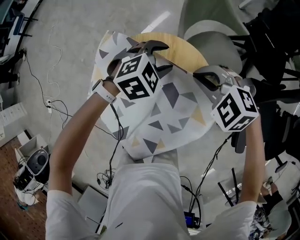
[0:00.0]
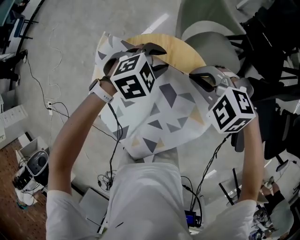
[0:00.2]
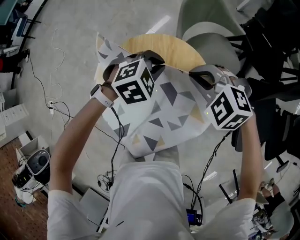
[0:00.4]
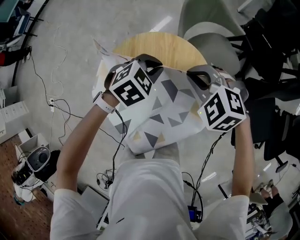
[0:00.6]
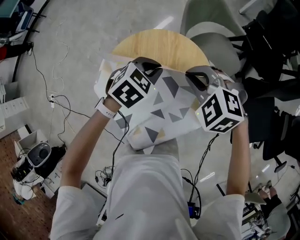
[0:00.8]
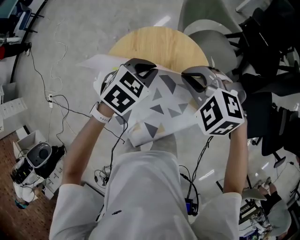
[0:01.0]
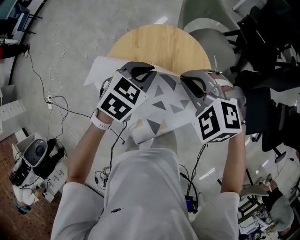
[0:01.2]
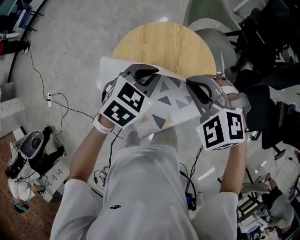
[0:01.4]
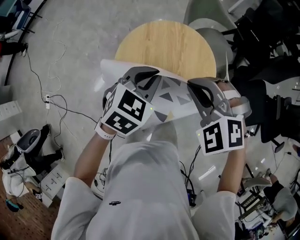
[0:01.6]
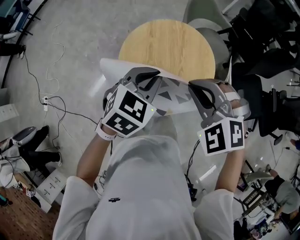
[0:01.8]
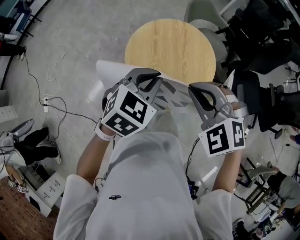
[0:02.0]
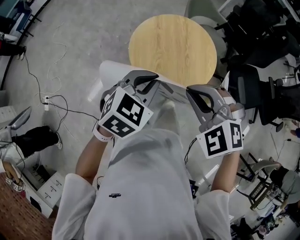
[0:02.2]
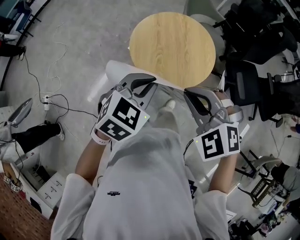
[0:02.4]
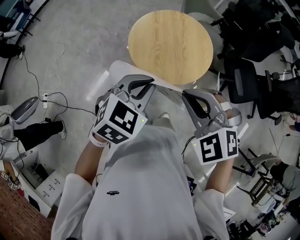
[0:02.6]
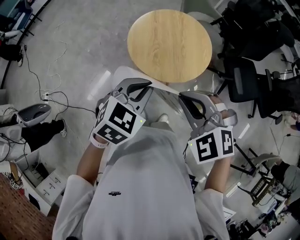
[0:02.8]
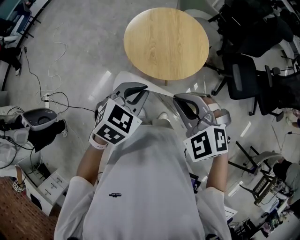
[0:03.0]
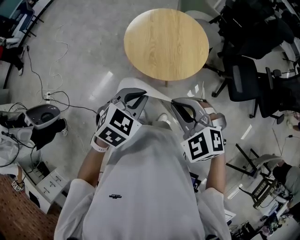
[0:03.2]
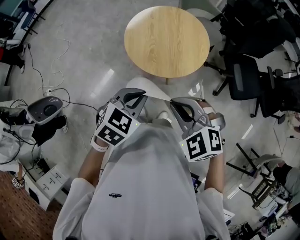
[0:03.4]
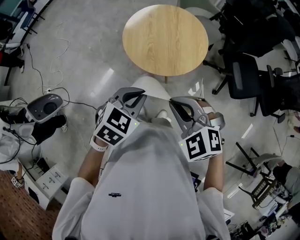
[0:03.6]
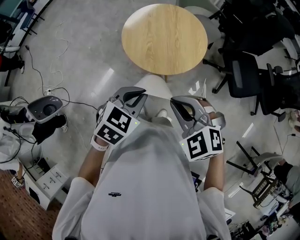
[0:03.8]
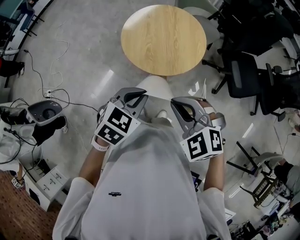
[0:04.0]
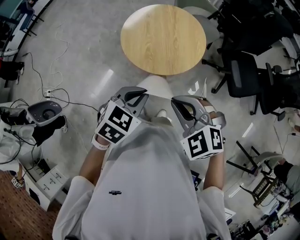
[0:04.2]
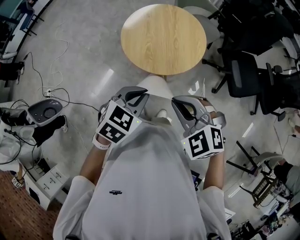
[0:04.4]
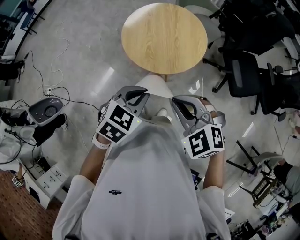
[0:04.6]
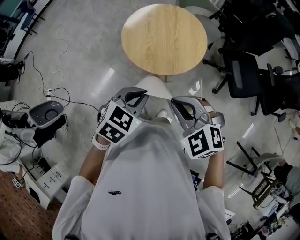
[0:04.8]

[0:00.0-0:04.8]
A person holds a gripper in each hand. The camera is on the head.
0:00.0 to 0:01.6: Both grippers move backward, upward and to the left, approximately 30 cm. The left gripper turns by some 30 degrees, and closes.
0:01.6 to 0:03.2: The grippers both shift backward by approximately 35 cm.
0:03.2 to 0:04.8: The grippers stay close to where they were, moving slightly.

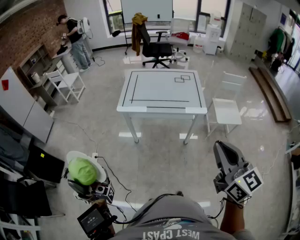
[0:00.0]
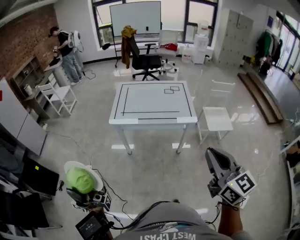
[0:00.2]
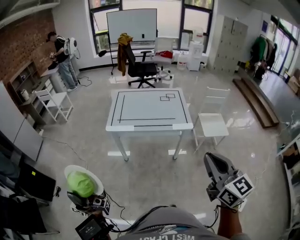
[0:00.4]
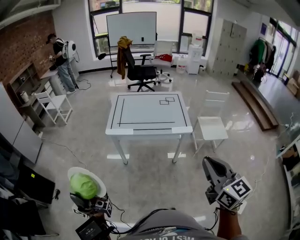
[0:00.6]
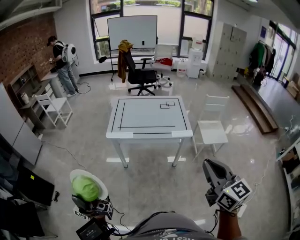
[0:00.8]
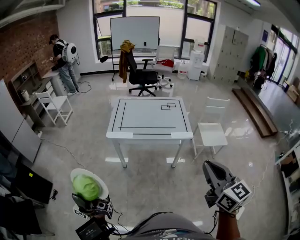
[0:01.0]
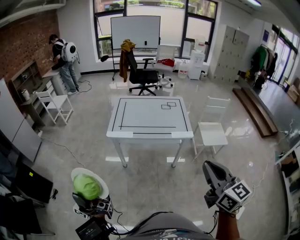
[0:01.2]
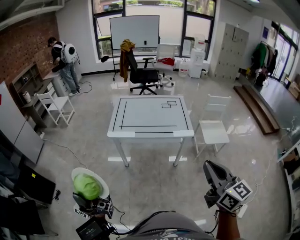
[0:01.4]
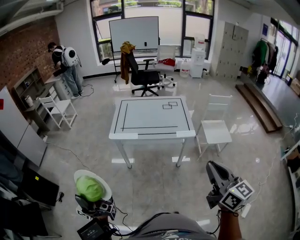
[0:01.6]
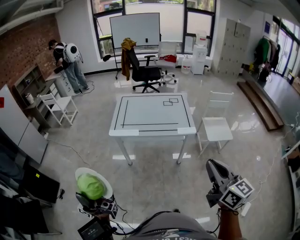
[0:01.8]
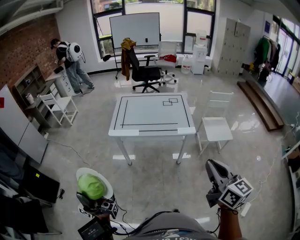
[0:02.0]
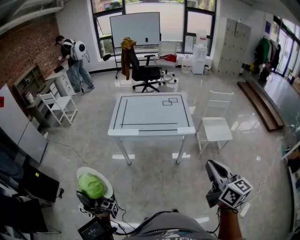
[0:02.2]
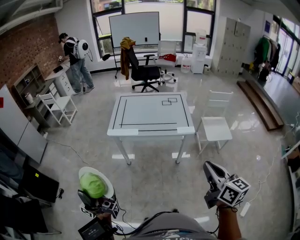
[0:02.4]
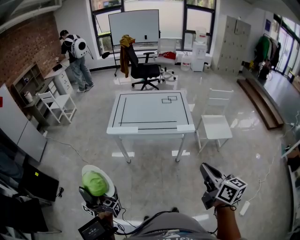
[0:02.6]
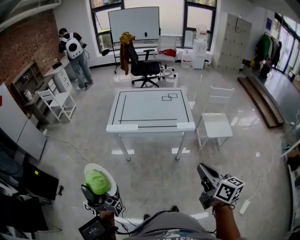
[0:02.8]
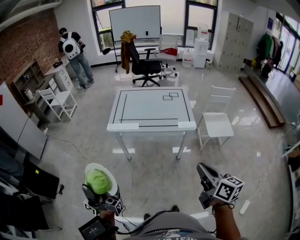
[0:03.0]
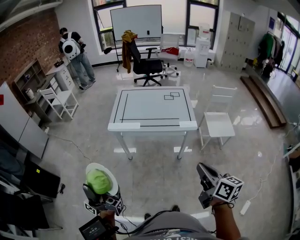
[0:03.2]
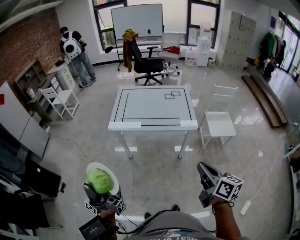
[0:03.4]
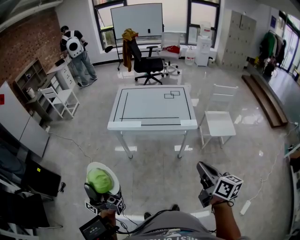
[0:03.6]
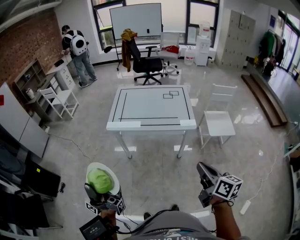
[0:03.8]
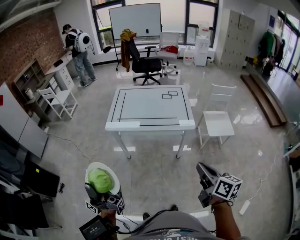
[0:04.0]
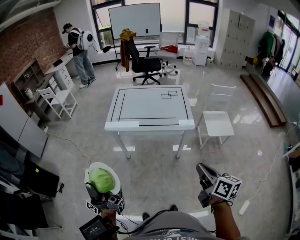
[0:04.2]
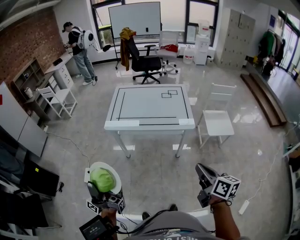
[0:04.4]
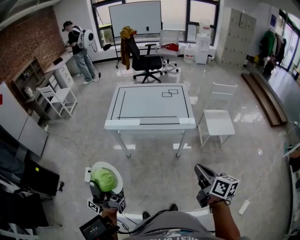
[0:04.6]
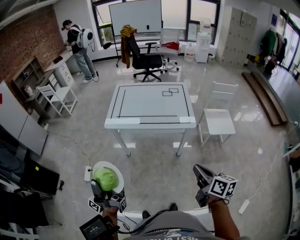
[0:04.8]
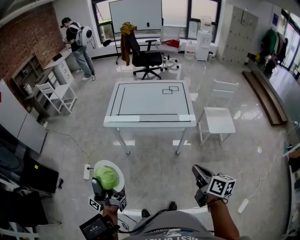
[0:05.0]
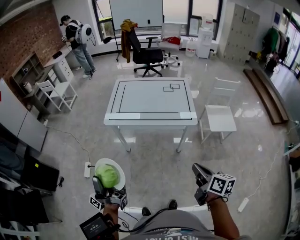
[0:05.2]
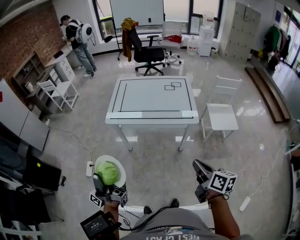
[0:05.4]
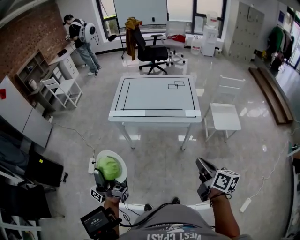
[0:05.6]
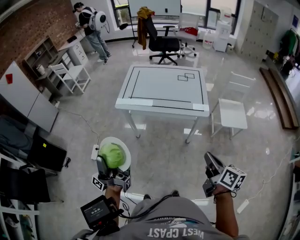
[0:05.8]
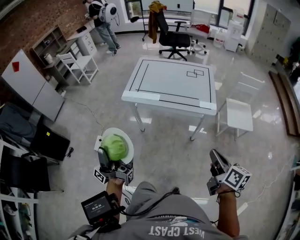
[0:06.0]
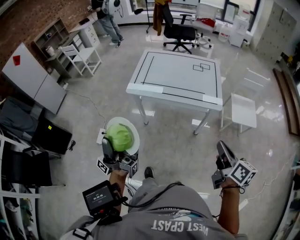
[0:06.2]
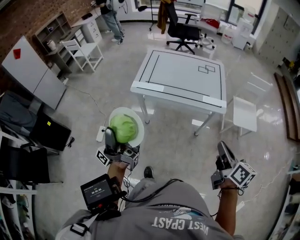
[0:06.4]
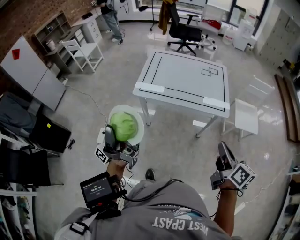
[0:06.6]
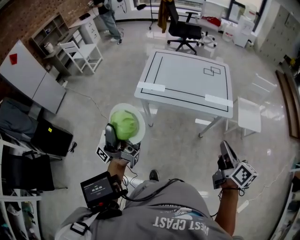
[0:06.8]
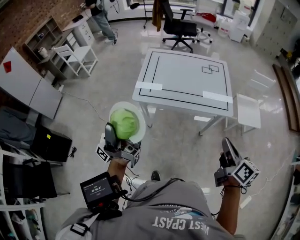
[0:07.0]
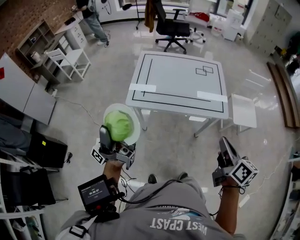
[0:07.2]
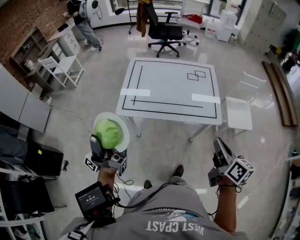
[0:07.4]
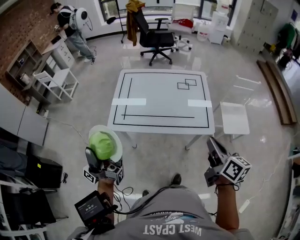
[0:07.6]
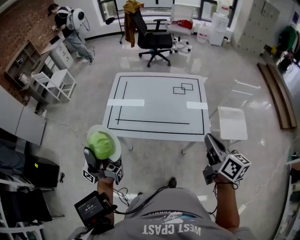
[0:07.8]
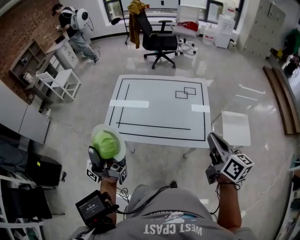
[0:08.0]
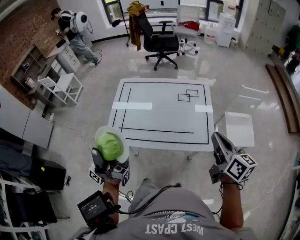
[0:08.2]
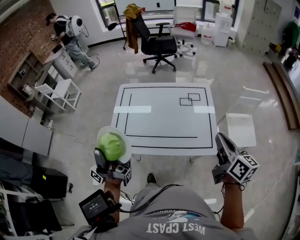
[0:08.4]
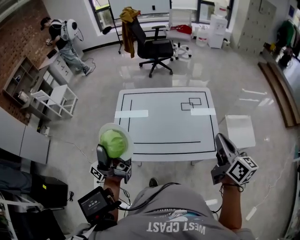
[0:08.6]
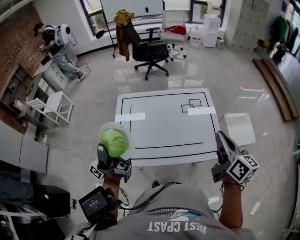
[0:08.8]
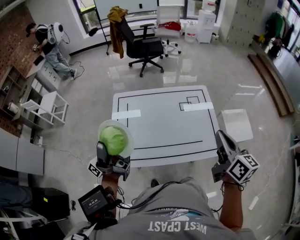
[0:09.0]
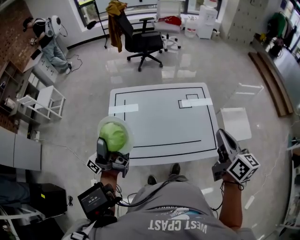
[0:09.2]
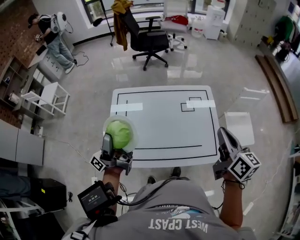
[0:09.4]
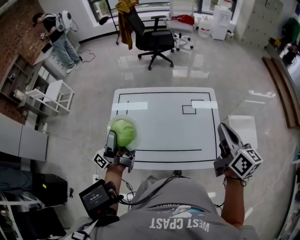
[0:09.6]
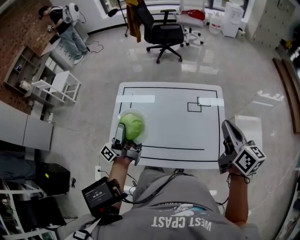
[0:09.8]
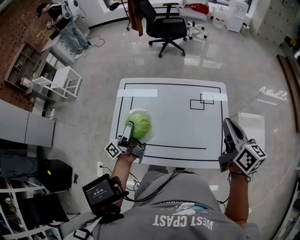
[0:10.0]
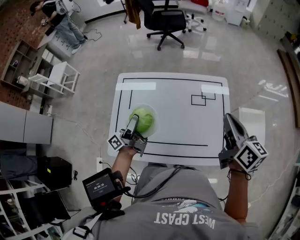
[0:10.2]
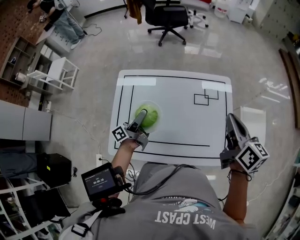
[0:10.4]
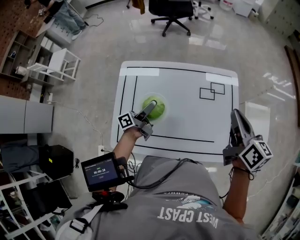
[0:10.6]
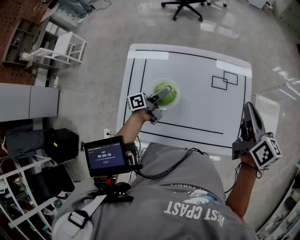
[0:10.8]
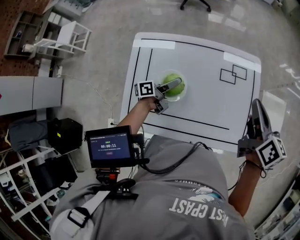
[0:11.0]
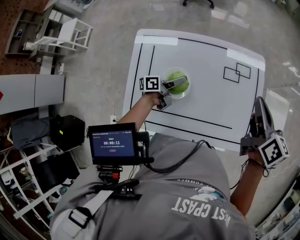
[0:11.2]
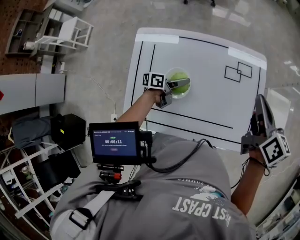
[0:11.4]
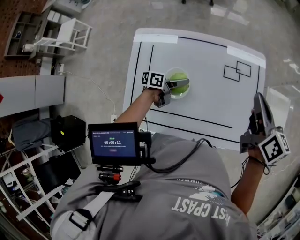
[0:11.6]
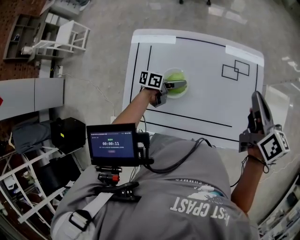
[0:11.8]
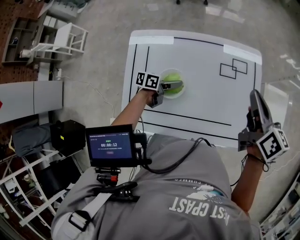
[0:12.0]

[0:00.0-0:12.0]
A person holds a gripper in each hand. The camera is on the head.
0:01.6 to 0:03.0: The right gripper travels downward by approximately 10 cm, and turns by approximately 20 degrees.
0:03.0 to 0:04.4: The right gripper moves some 5 cm.
0:04.4 to 0:06.0: The right gripper changes place by about 5 cm.
0:06.0 to 0:07.6: The right gripper shifts by approximately 25 cm.
0:07.6 to 0:09.0: The right gripper shifts by about 20 cm.
0:09.0 to 0:10.4: The right gripper moves roughly 20 cm.
0:10.4 to 0:12.0: The right gripper moves about 5 cm.

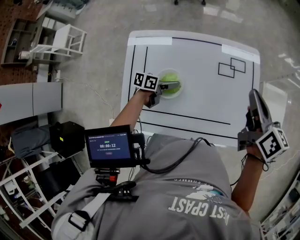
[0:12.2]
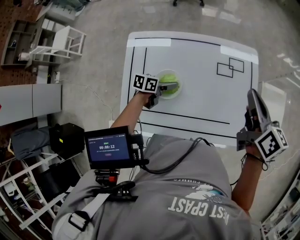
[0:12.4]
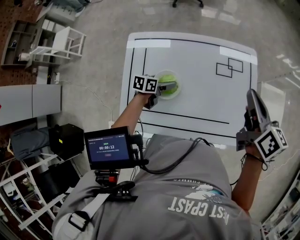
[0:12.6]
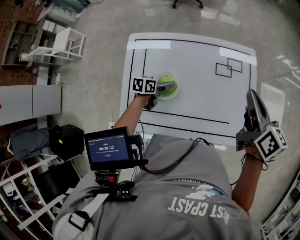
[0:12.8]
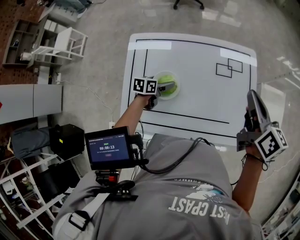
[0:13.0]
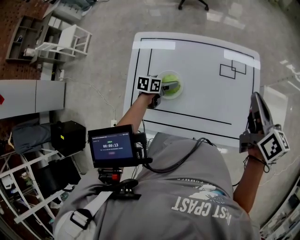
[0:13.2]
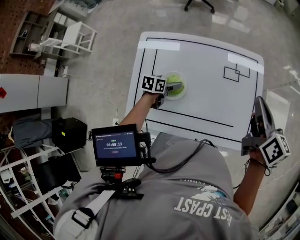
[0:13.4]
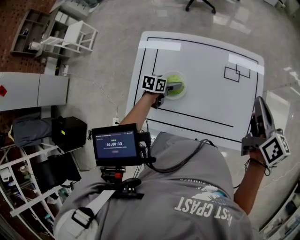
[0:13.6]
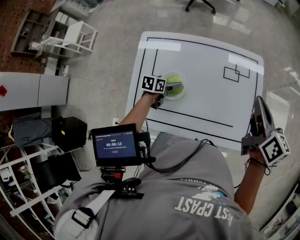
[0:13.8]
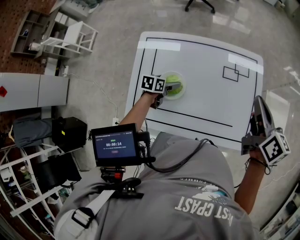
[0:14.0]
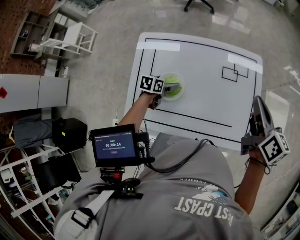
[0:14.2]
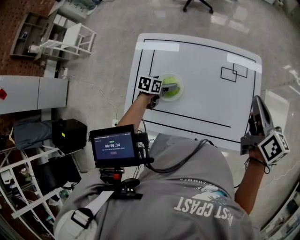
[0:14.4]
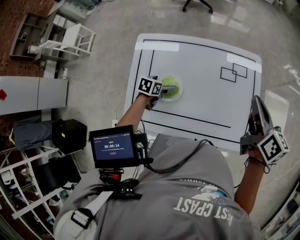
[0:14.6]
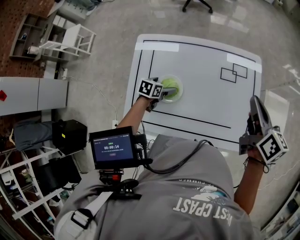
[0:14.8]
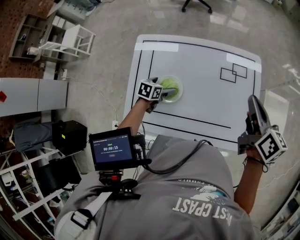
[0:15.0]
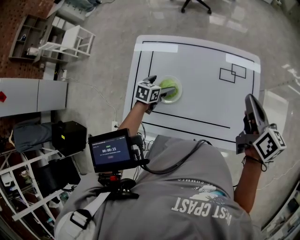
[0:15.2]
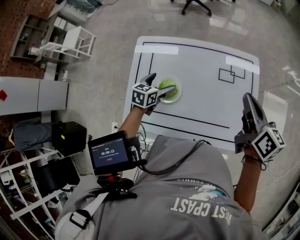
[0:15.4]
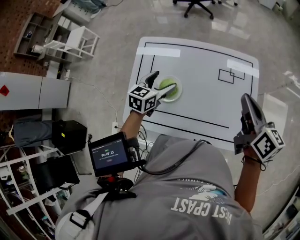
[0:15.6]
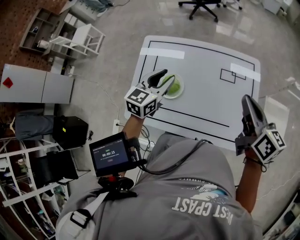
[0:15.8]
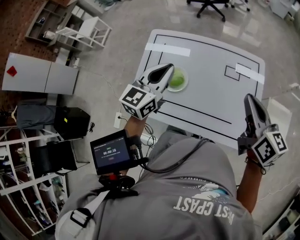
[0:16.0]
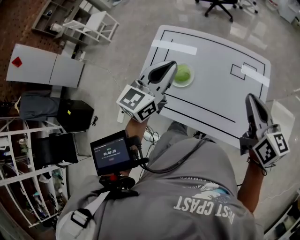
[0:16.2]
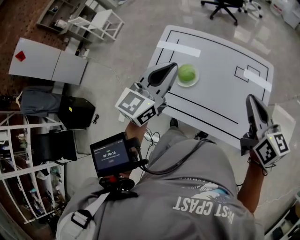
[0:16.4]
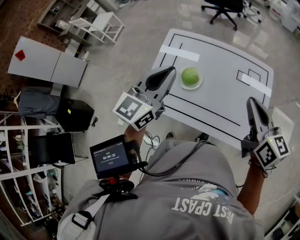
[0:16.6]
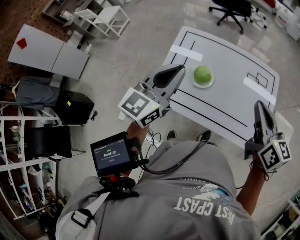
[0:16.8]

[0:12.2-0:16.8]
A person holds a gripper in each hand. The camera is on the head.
0:15.2 to 0:16.8: The right gripper changes place by approximately 15 cm, and swivels about 20 degrees.

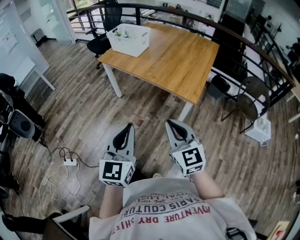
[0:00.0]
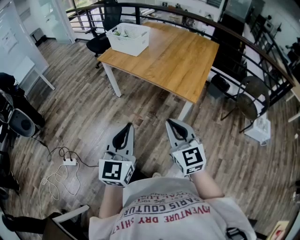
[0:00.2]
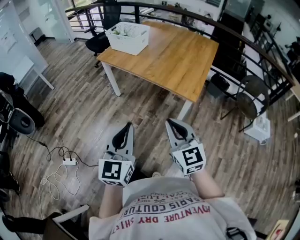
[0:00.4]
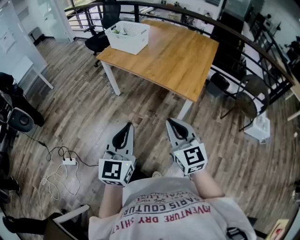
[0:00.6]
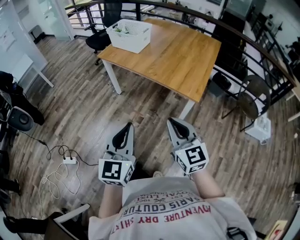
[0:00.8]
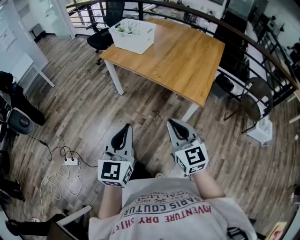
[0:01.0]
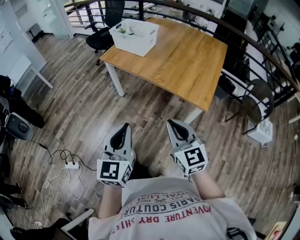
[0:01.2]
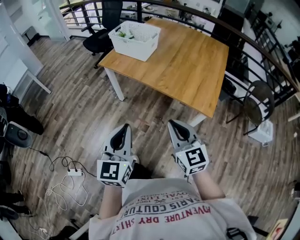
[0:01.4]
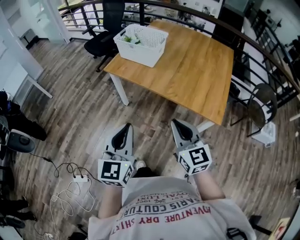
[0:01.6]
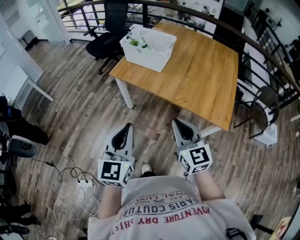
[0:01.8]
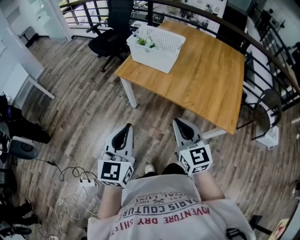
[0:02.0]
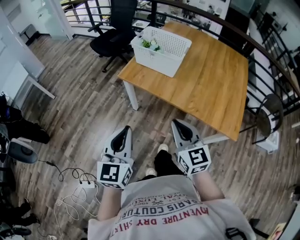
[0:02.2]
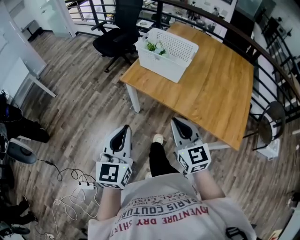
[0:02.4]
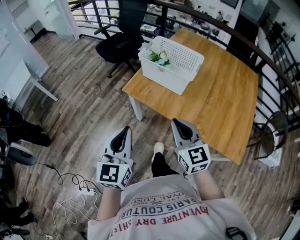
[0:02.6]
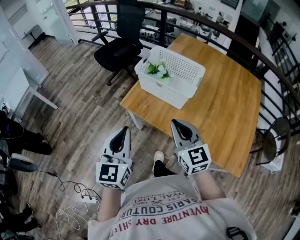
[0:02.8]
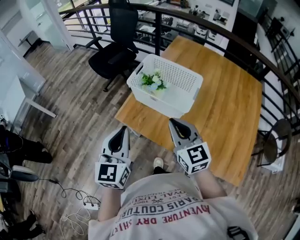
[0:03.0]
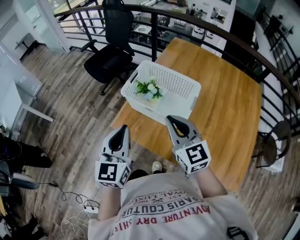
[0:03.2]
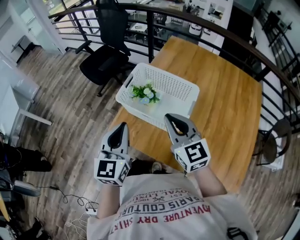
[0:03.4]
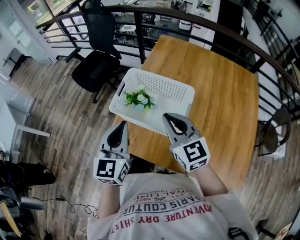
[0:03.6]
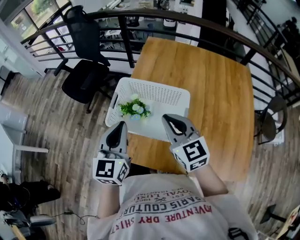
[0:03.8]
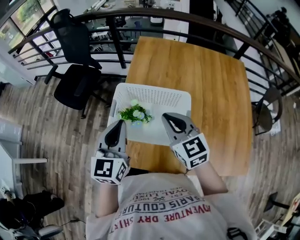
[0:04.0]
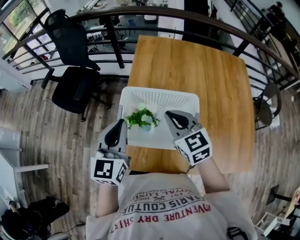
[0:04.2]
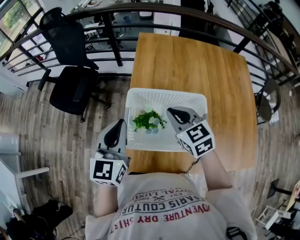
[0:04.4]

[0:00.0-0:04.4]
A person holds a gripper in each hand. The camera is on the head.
0:00.0 to 0:01.4: The grippers both shift forward and to the left by approximately 20 cm.
0:01.4 to 0:03.0: Both grippers are carried forward, approximately 50 cm.
0:03.0 to 0:04.4: Both grippers move forward, approximately 30 cm. The right gripper swivels roughly 30 degrees, while the left gripper changes its angle by some 30 degrees.
